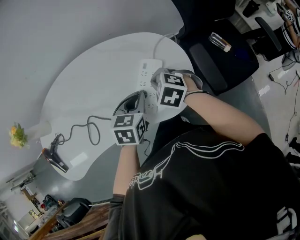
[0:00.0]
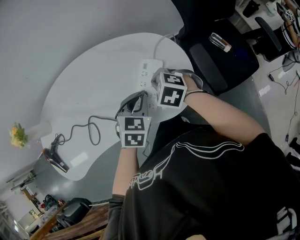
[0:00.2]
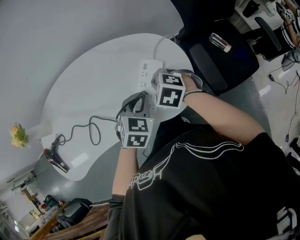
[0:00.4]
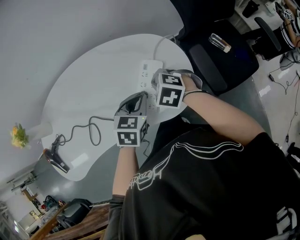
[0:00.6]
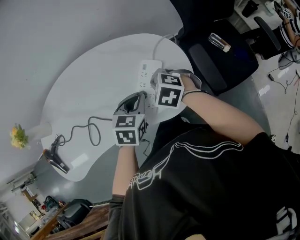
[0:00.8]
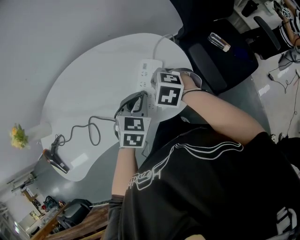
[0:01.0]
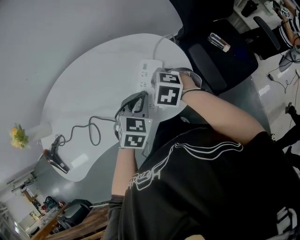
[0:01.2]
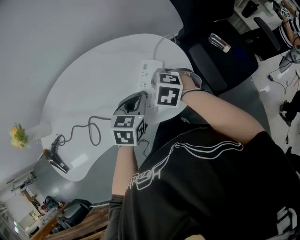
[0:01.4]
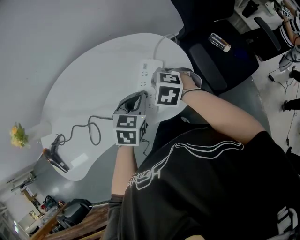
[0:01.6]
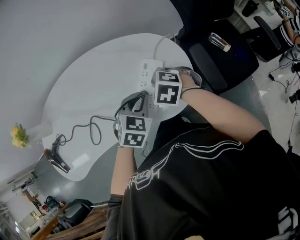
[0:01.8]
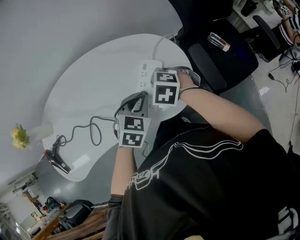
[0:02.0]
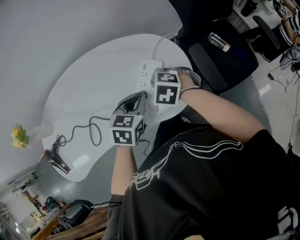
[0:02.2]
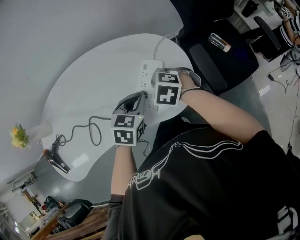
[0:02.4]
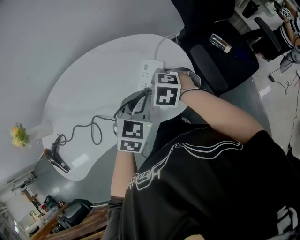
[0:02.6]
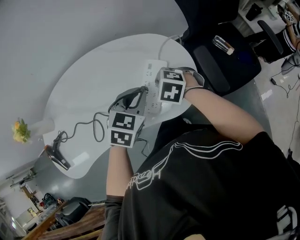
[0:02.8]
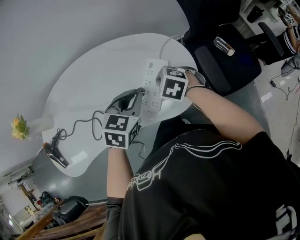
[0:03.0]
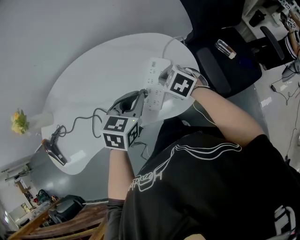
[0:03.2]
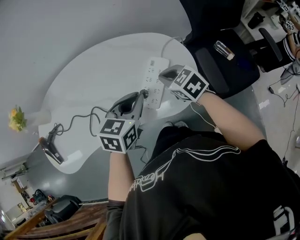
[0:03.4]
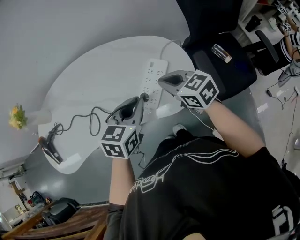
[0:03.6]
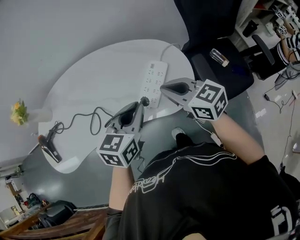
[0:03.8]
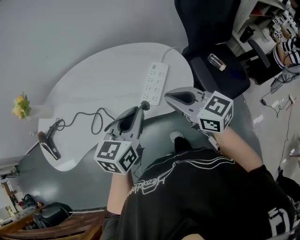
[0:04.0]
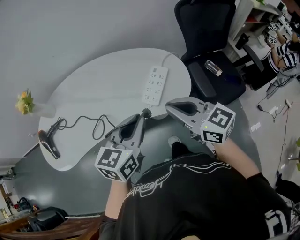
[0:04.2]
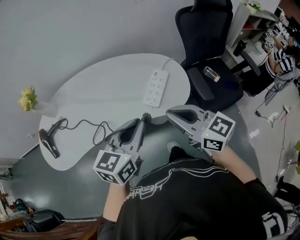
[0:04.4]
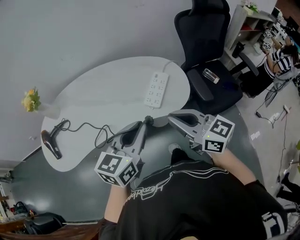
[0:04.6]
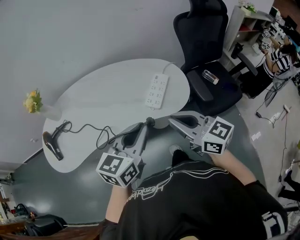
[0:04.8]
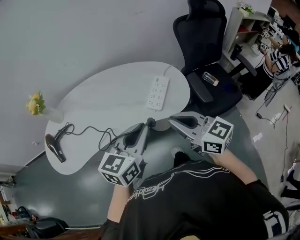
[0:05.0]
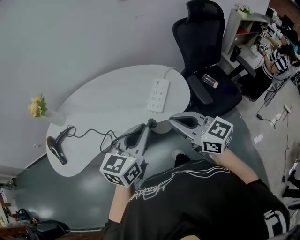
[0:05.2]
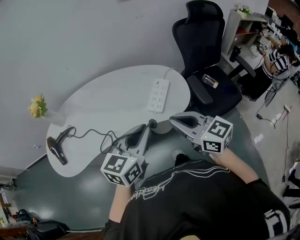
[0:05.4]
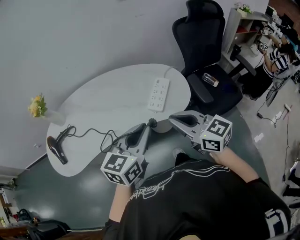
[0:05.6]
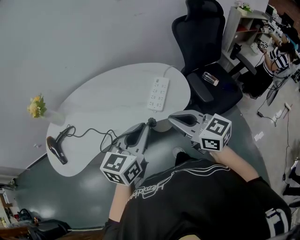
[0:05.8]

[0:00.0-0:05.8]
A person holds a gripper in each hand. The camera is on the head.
0:02.8 to 0:04.4: The left gripper goes about 30 cm backward, upward and to the left, and swivels about 40 degrees. The right gripper goes approximately 35 cm upward and backward, and points its fingers some 60 degrees further upward.
0:04.4 to 0:05.8: The grippers stay close to where they were, moving slightly.

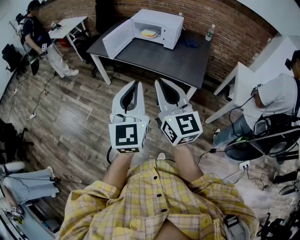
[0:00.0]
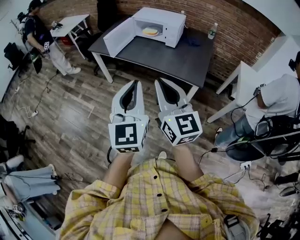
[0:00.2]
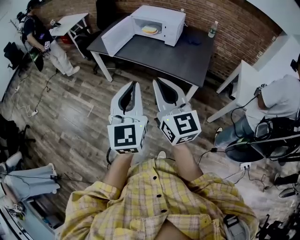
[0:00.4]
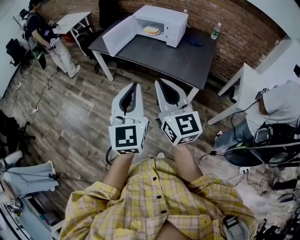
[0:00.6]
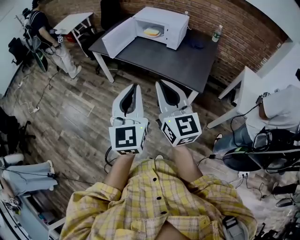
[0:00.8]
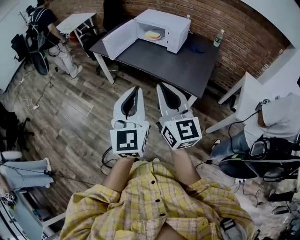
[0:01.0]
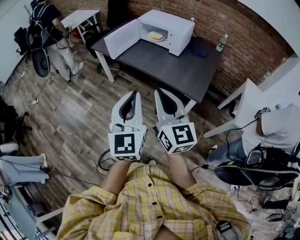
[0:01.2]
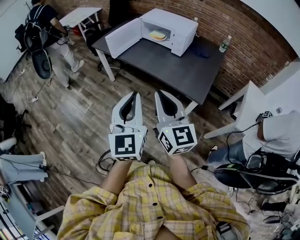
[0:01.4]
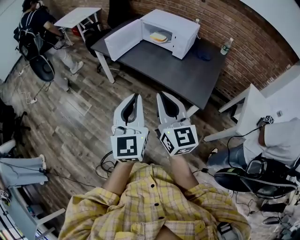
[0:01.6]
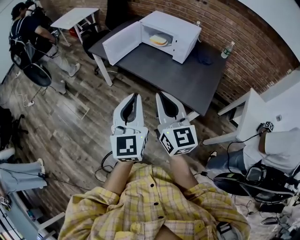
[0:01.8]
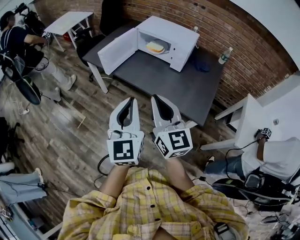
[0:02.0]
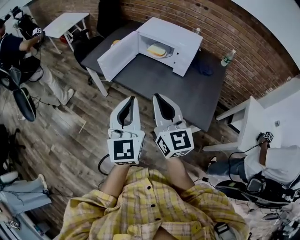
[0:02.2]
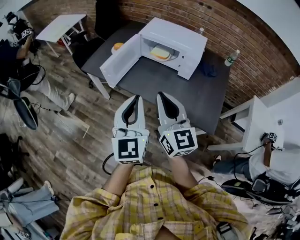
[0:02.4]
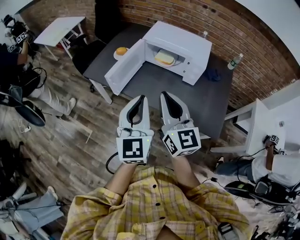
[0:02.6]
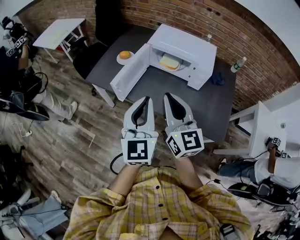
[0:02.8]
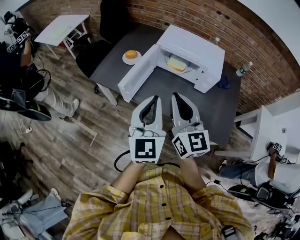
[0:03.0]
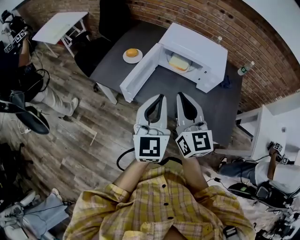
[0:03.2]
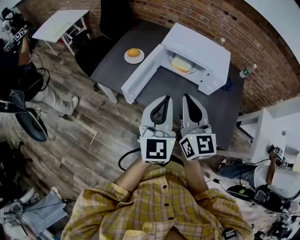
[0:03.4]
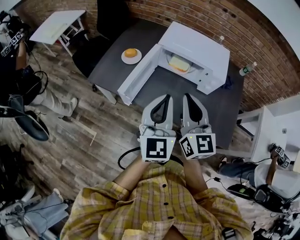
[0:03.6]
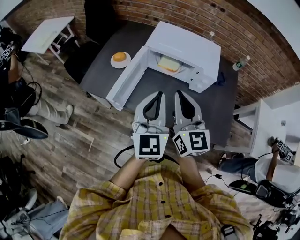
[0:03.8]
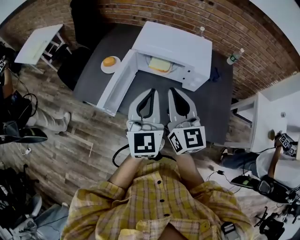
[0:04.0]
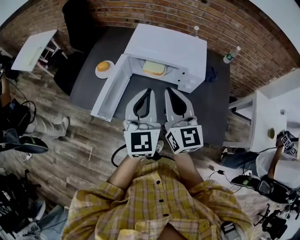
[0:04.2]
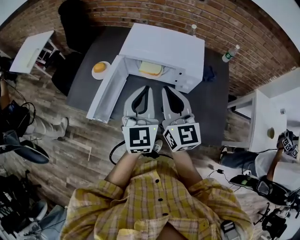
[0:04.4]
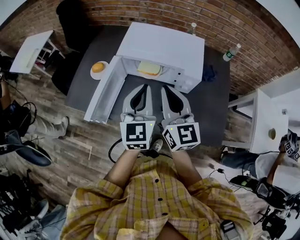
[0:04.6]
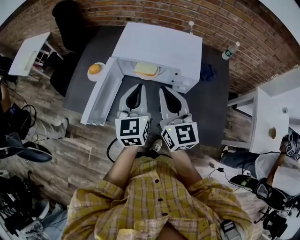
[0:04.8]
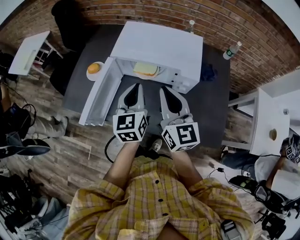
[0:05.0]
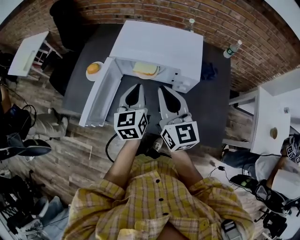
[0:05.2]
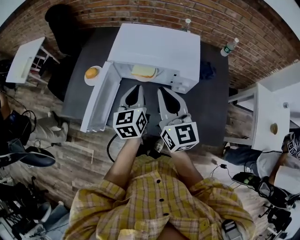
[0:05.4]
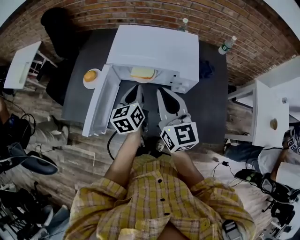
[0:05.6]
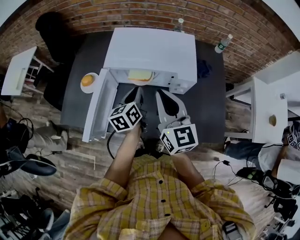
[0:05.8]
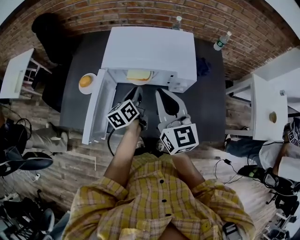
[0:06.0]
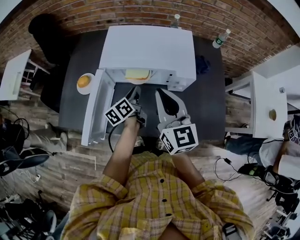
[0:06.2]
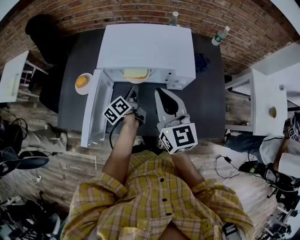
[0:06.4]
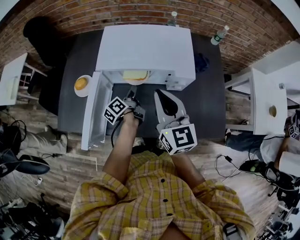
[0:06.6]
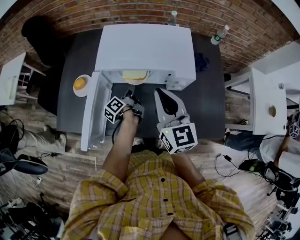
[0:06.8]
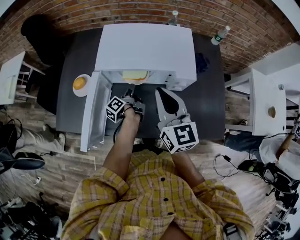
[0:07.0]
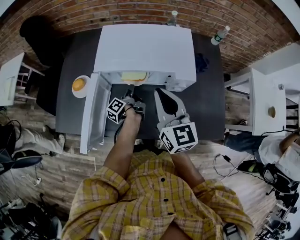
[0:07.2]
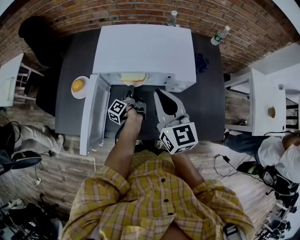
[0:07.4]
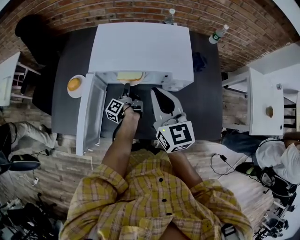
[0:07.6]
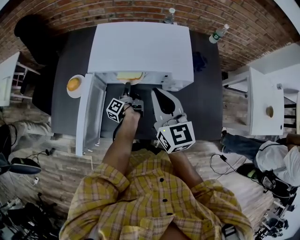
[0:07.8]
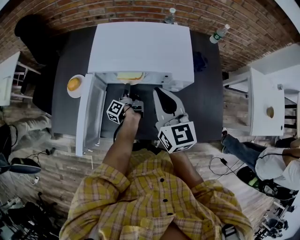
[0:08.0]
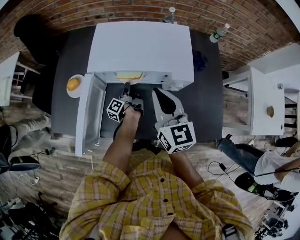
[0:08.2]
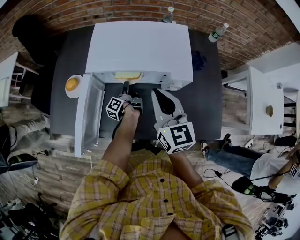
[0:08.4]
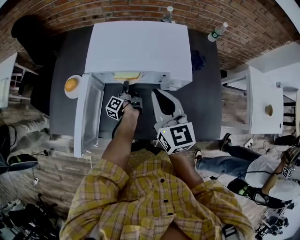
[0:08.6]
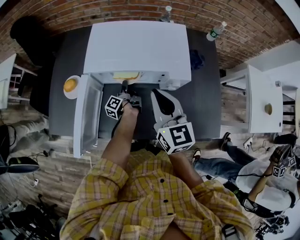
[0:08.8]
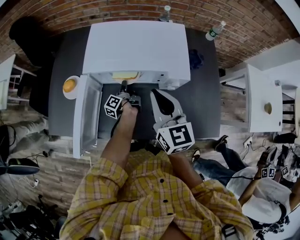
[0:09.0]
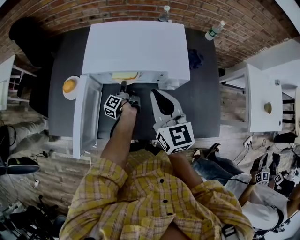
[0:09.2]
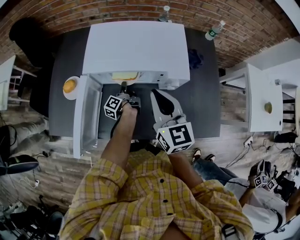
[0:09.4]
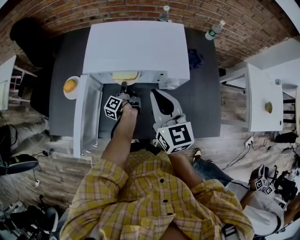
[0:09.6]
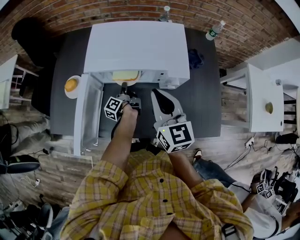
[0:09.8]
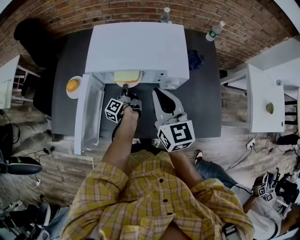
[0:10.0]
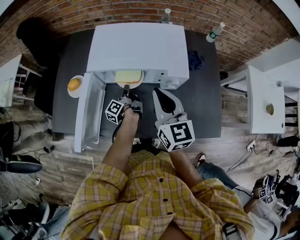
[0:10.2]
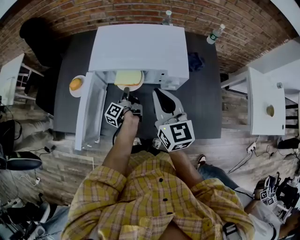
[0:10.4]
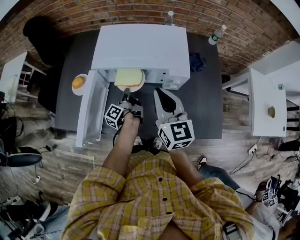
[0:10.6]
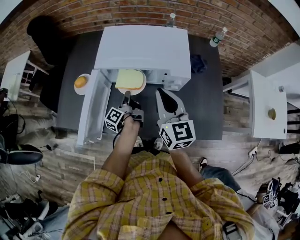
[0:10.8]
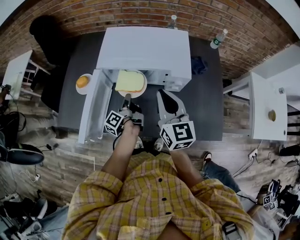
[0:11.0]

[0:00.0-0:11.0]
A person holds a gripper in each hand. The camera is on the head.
0:00.0 to 0:01.6: The grippers both shift forward, to the right and downward by about 15 cm.
0:01.6 to 0:03.2: The pair of grippers is taken forward, approximately 40 cm.
0:03.2 to 0:04.8: Both grippers travel together forward and to the right, approximately 20 cm.
0:04.8 to 0:06.2: The left gripper travels downward and forward by roughly 20 cm, and twists roughly 50 degrees counterclockwise, seen from behind.
0:06.2 to 0:07.8: The left gripper travels downward and forward by approximately 15 cm, and rotates about 40 degrees, while the right gripper shifts by some 5 cm.
0:07.8 to 0:09.4: The left gripper closes its fingers.
0:09.4 to 0:11.0: The left gripper moves backward and upward, approximately 15 cm.

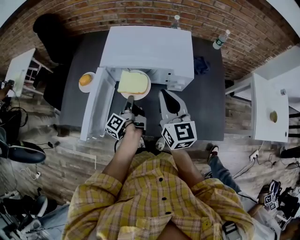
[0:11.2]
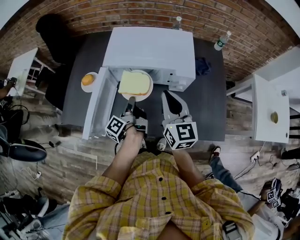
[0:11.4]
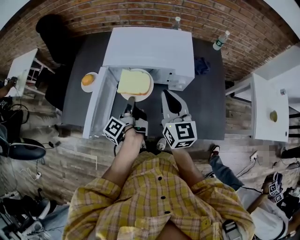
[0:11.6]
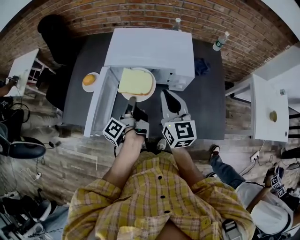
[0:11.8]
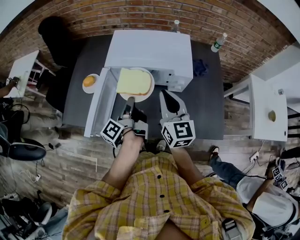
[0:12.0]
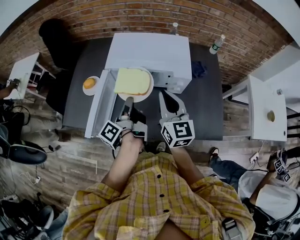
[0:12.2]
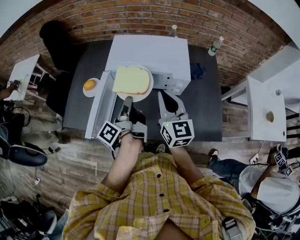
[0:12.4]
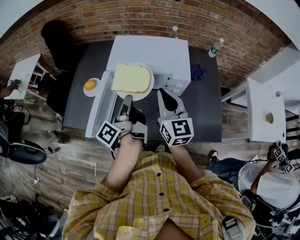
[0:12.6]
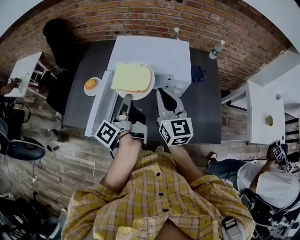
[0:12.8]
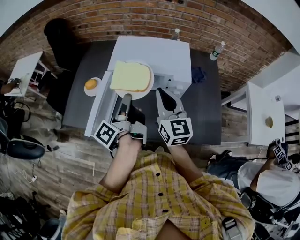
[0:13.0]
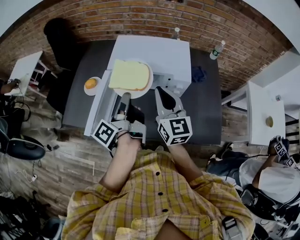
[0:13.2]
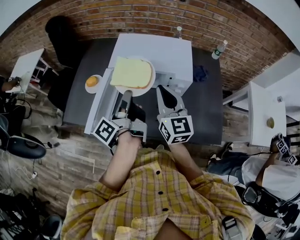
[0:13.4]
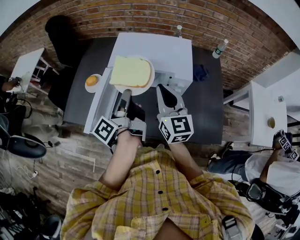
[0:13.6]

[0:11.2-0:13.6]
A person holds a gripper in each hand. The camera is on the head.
0:11.2 to 0:12.4: The left gripper travels upward by approximately 15 cm.
0:12.4 to 0:13.6: The grippers stay close to where they were, moving slightly.

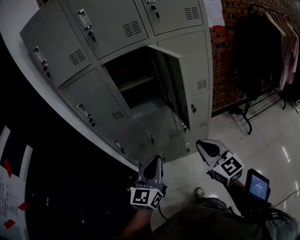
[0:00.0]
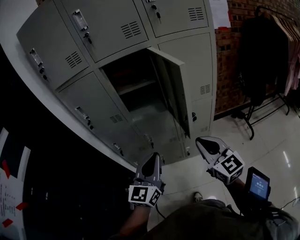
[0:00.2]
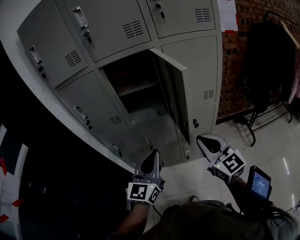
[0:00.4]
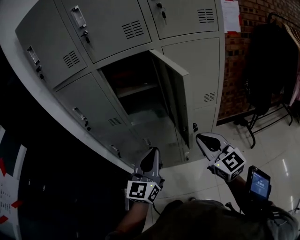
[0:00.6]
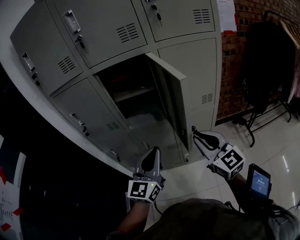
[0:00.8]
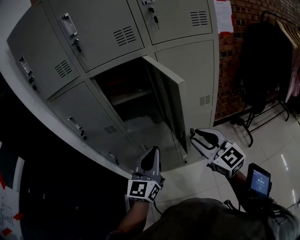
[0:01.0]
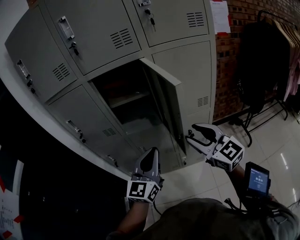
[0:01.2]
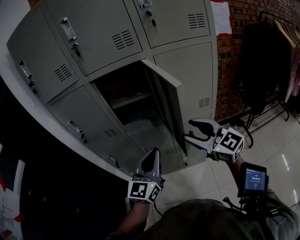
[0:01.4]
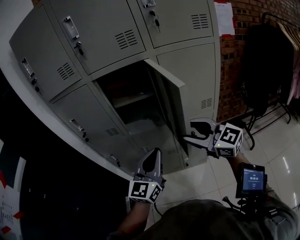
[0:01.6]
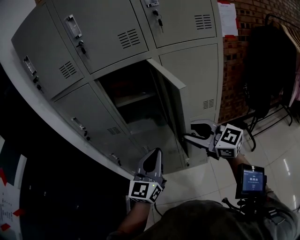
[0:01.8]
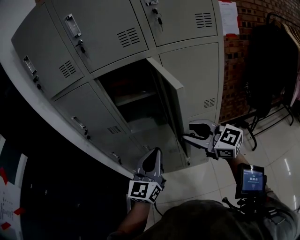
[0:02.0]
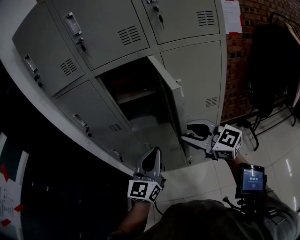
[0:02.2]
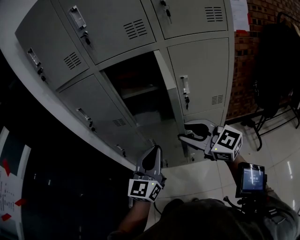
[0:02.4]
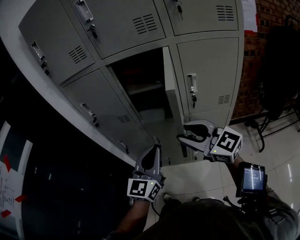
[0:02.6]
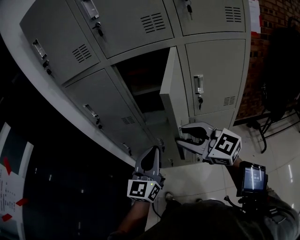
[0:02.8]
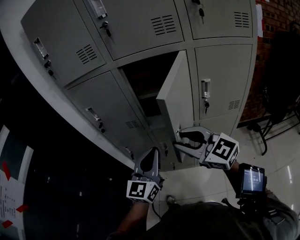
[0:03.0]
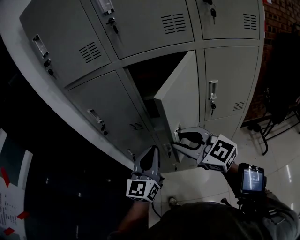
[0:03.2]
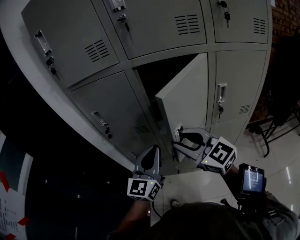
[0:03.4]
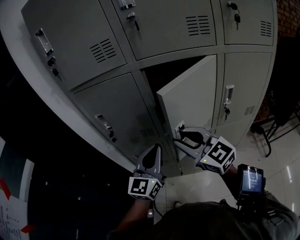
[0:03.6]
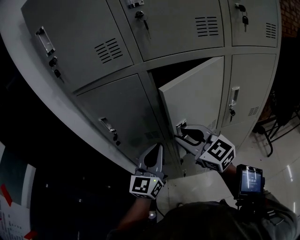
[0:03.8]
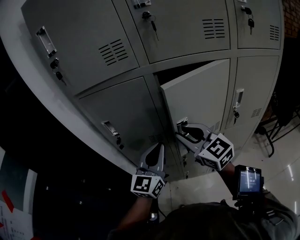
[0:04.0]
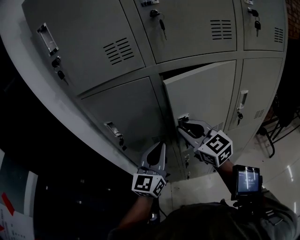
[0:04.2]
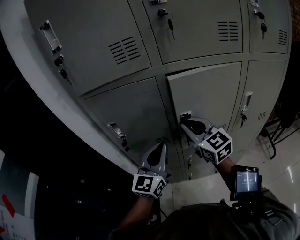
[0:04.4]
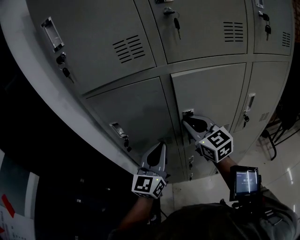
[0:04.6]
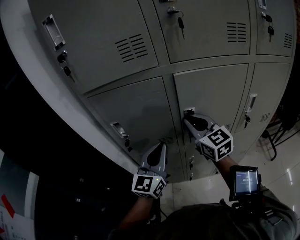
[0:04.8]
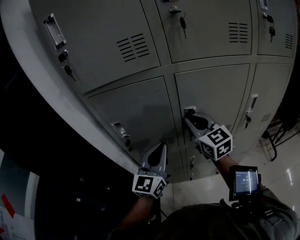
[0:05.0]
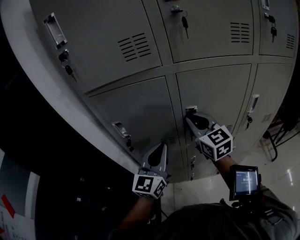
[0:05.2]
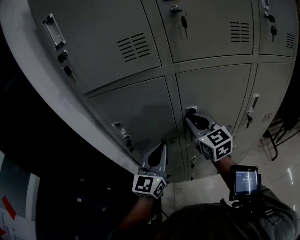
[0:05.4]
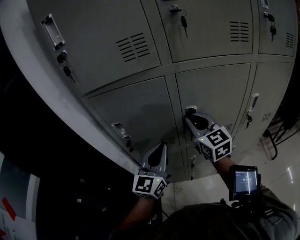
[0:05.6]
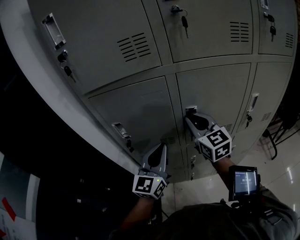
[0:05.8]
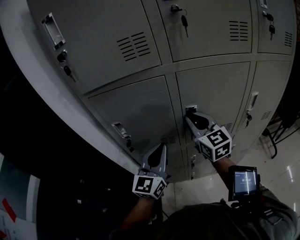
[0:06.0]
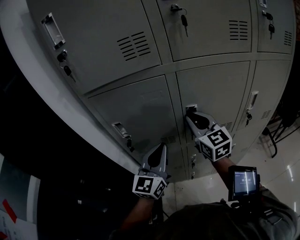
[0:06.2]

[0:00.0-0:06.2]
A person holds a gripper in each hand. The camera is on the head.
0:00.0 to 0:01.6: The left gripper is displaced forward and to the right by about 15 cm; the right gripper travels forward by some 15 cm, rotates roughly 30 degrees, and opens.
0:01.6 to 0:03.2: The grippers both shift to the left and forward by about 15 cm.
0:03.2 to 0:04.6: The right gripper travels forward by some 20 cm, rotates some 20 degrees, and closes; the left gripper heads forward and to the left, covering approximately 15 cm.
0:04.6 to 0:06.2: The grippers move only a little.
